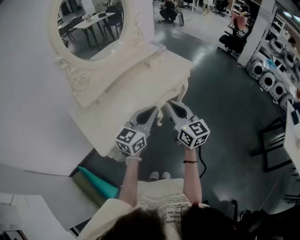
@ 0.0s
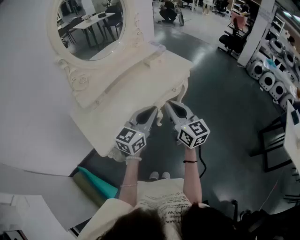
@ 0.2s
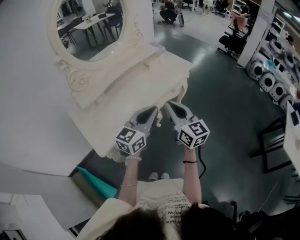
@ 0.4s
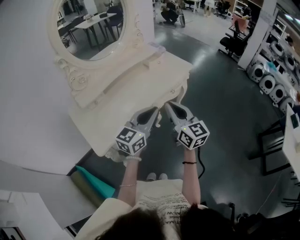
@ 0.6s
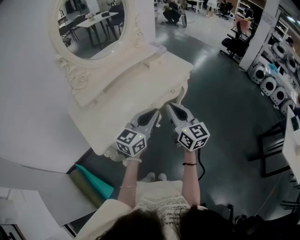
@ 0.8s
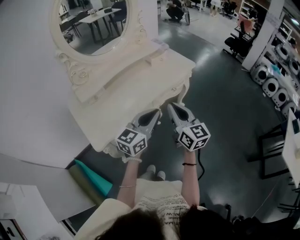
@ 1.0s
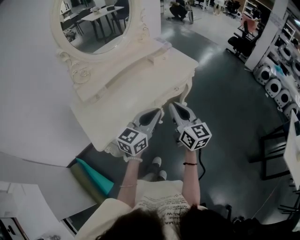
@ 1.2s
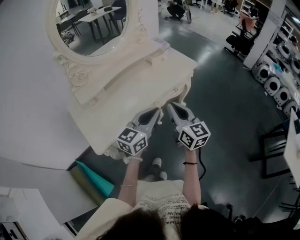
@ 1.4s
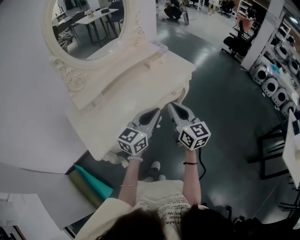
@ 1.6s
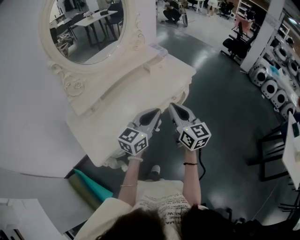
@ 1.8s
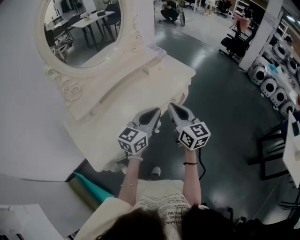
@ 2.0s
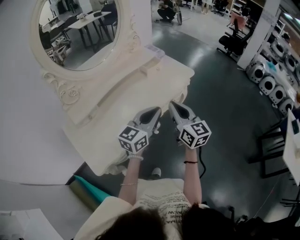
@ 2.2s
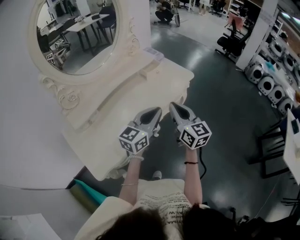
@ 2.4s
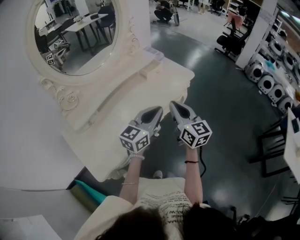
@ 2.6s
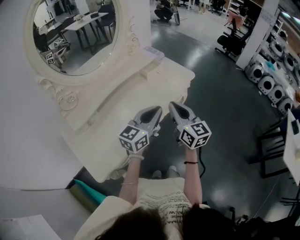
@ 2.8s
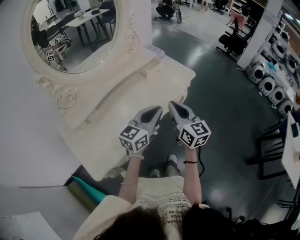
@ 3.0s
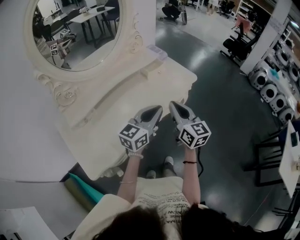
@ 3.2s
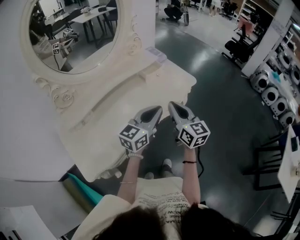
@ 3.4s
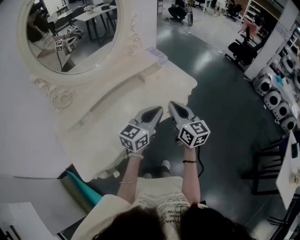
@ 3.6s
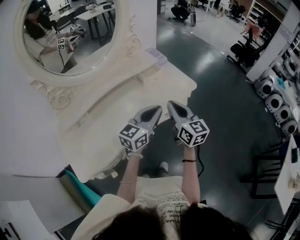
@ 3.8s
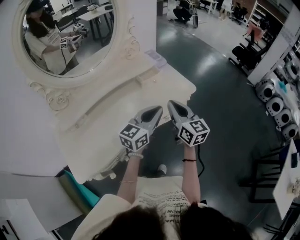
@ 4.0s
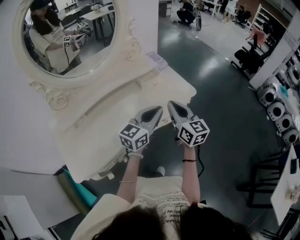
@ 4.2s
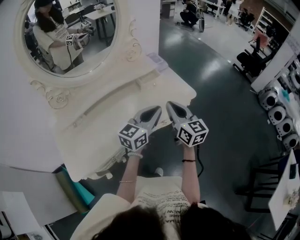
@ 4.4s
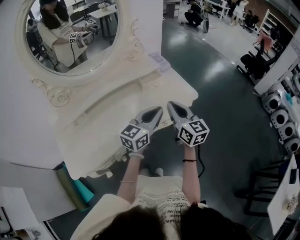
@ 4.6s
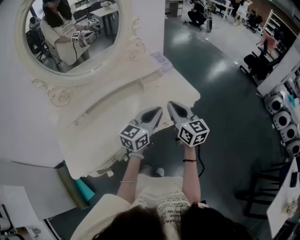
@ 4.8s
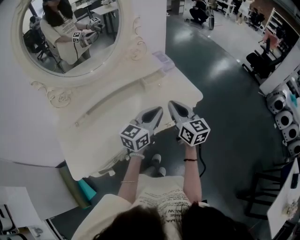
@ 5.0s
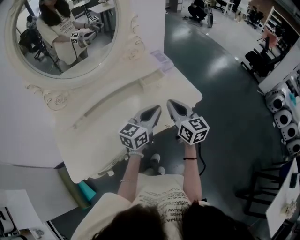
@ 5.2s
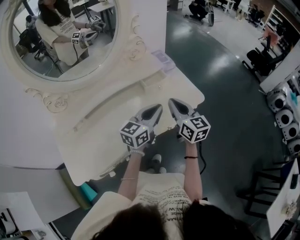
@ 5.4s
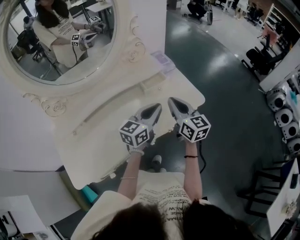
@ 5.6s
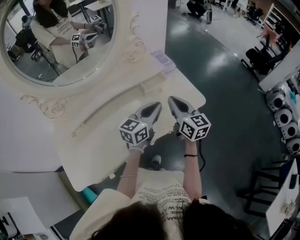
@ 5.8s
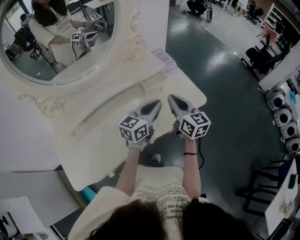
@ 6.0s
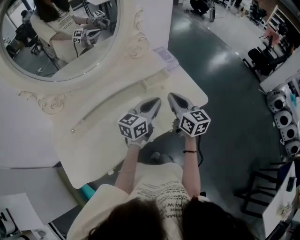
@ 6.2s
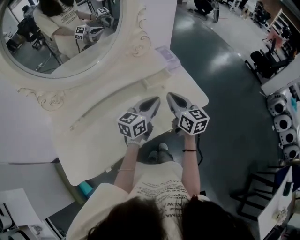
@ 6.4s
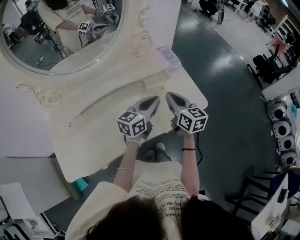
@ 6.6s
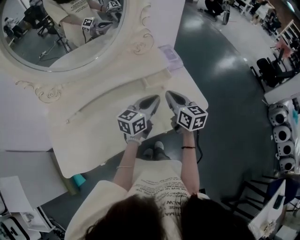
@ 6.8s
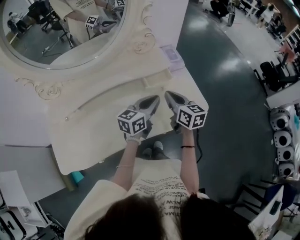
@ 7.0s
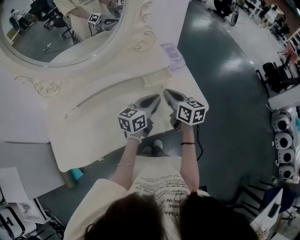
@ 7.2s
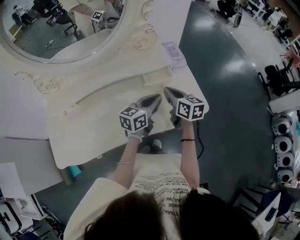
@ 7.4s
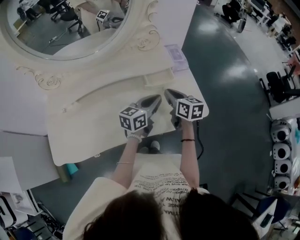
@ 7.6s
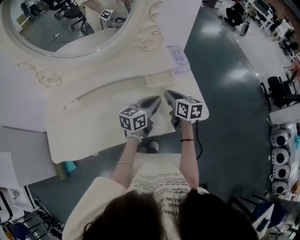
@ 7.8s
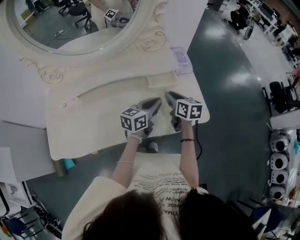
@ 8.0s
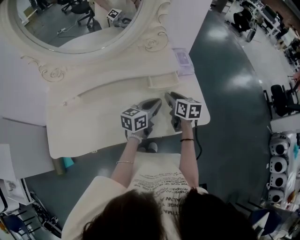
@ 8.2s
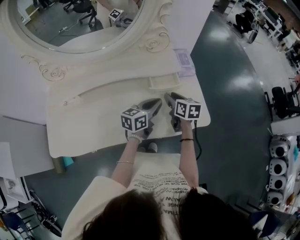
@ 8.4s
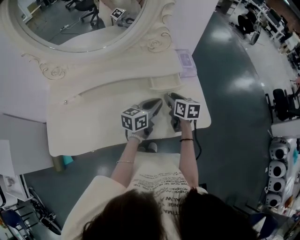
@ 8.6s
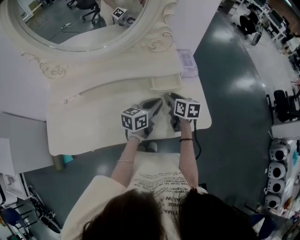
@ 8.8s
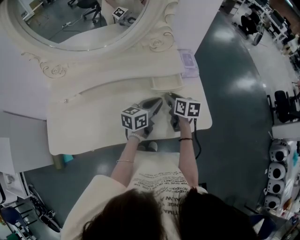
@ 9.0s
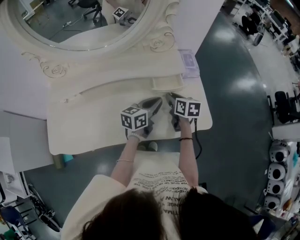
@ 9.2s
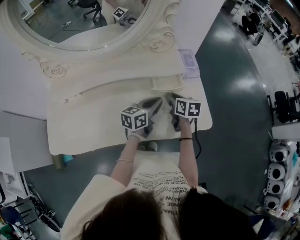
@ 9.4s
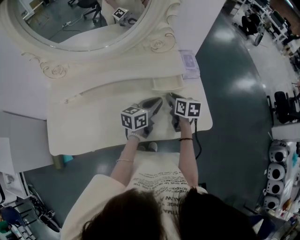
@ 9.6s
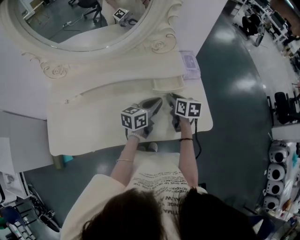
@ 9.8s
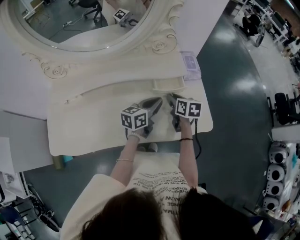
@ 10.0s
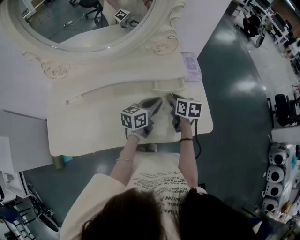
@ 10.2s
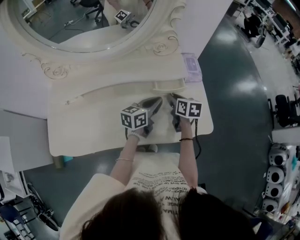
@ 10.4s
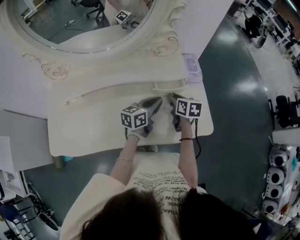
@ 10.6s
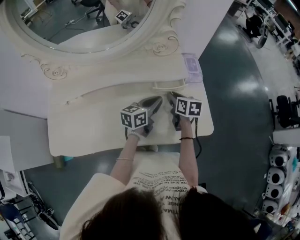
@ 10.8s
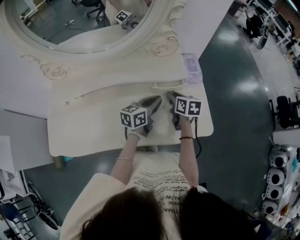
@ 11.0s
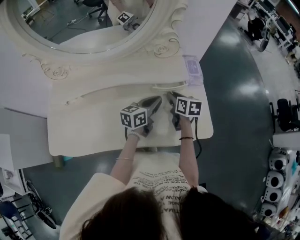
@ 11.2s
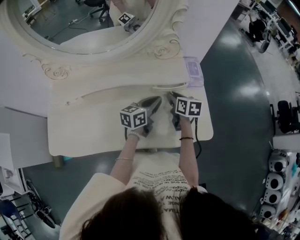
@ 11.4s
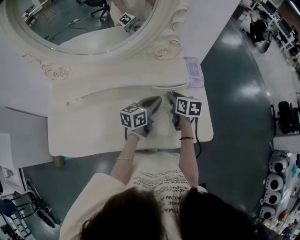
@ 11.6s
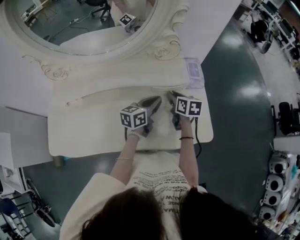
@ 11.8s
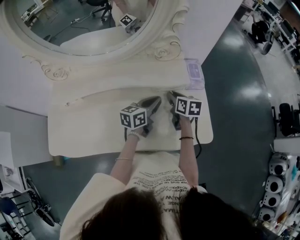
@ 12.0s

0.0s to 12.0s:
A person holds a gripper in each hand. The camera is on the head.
0.0s to 1.6s: The two grippers go approximately 5 cm forward.
1.6s to 3.0s: Both grippers travel together forward, approximately 10 cm.
3.0s to 4.4s: Both grippers travel together forward and to the right, approximately 15 cm.
4.4s to 6.0s: The right gripper moves forward, some 15 cm; the left gripper moves forward and downward, some 15 cm.
6.0s to 7.6s: The two grippers go approximately 10 cm downward and forward. The right gripper changes its angle by some 30 degrees.
7.6s to 9.0s: The left gripper ends up about 5 cm from where it was. Meanwhile the right gripper travels downward by approximately 5 cm, and opens.
9.0s to 10.4s: There are only small adjustments of the grippers.
10.4s to 12.0s: The right gripper is displaced forward by some 5 cm.

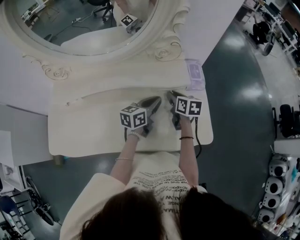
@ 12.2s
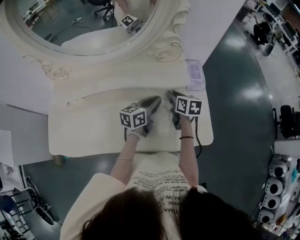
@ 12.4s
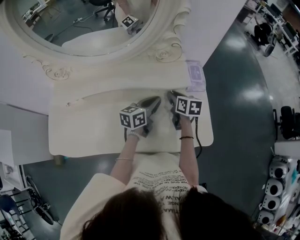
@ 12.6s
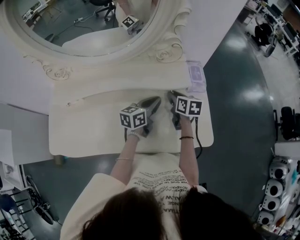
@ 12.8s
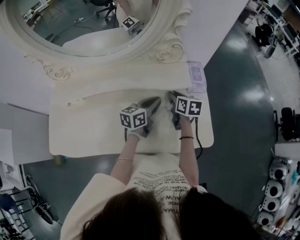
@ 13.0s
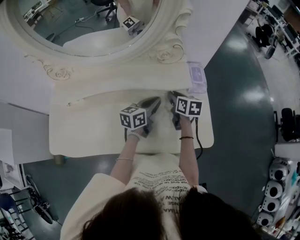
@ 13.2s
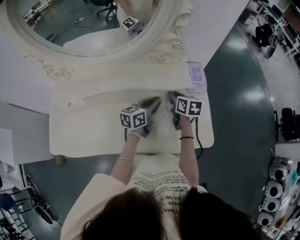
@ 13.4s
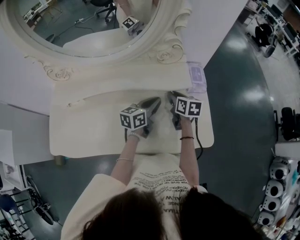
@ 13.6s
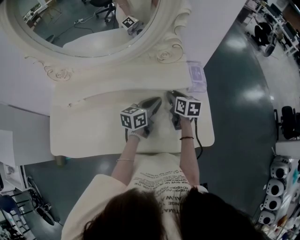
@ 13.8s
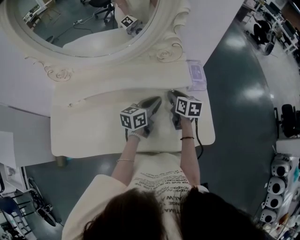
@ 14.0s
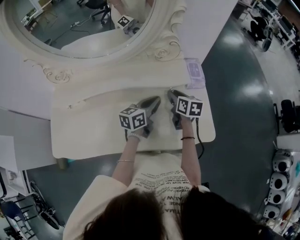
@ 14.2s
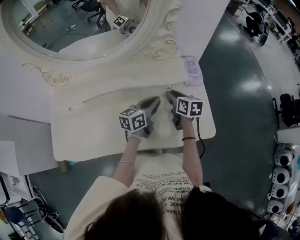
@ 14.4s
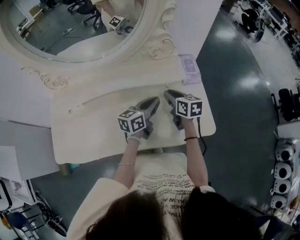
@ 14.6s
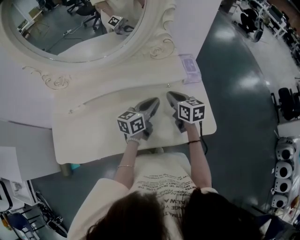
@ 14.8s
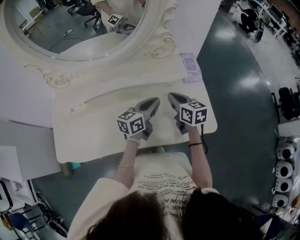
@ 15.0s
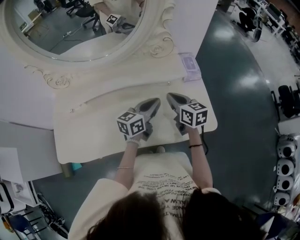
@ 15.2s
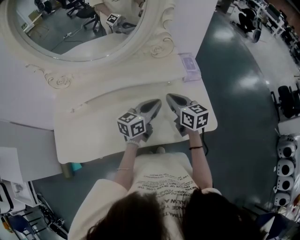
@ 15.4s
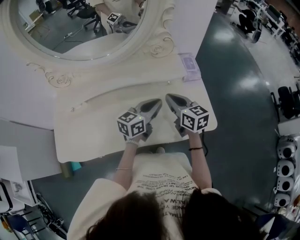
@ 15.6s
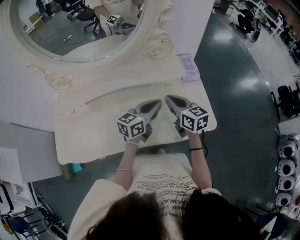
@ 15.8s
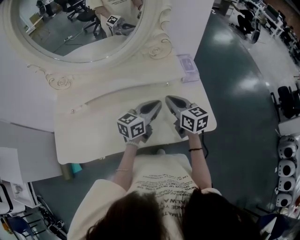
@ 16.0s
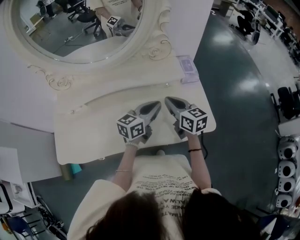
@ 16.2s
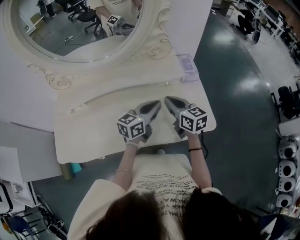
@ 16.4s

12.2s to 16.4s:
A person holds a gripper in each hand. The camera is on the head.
12.2s to 13.6s: Both grippers stay put.
13.6s to 15.0s: The left gripper goes some 5 cm backward. Meanwhile the right gripper shifts some 10 cm backward and upward, and closes its fingers.
15.0s to 16.4s: The right gripper moves approximately 5 cm.

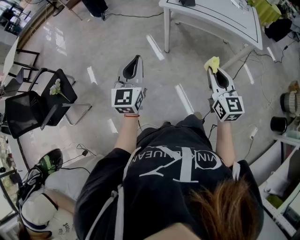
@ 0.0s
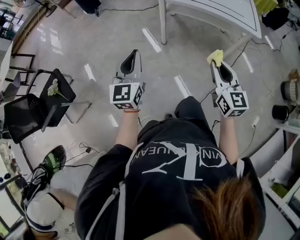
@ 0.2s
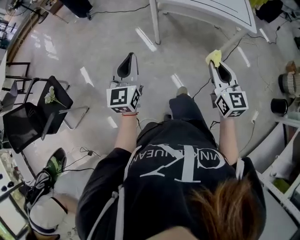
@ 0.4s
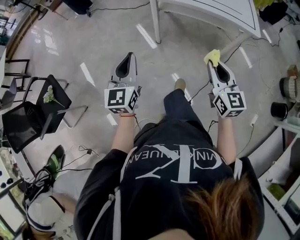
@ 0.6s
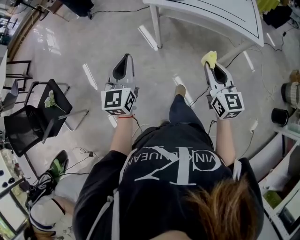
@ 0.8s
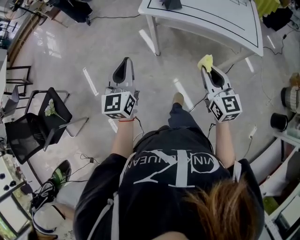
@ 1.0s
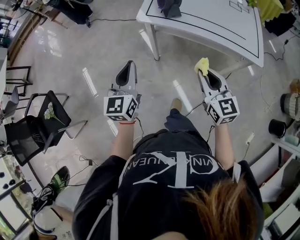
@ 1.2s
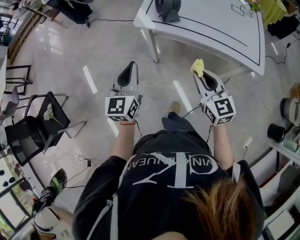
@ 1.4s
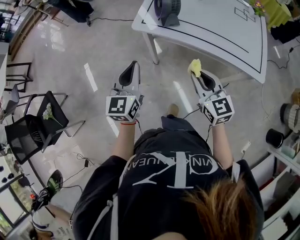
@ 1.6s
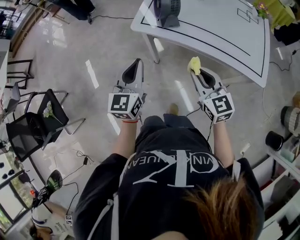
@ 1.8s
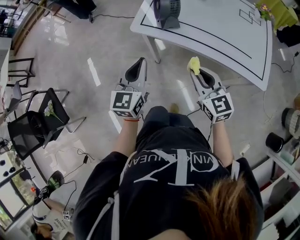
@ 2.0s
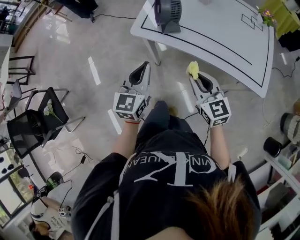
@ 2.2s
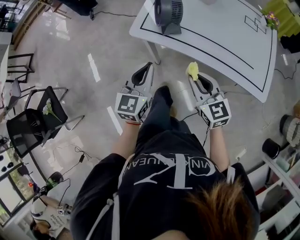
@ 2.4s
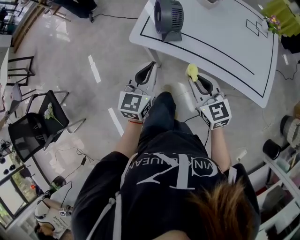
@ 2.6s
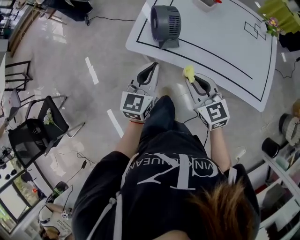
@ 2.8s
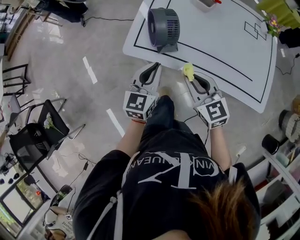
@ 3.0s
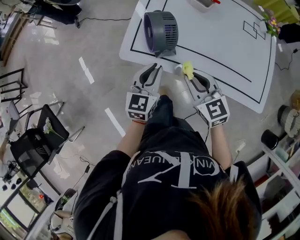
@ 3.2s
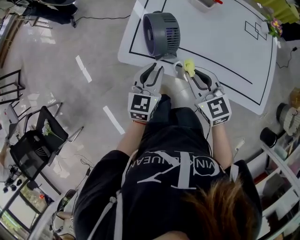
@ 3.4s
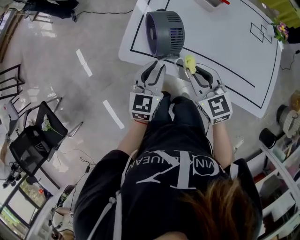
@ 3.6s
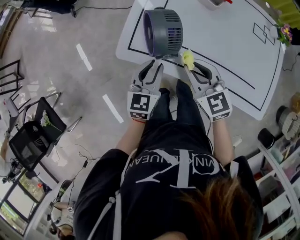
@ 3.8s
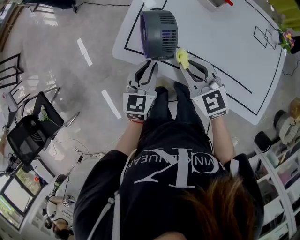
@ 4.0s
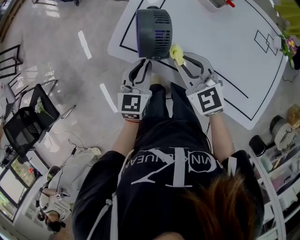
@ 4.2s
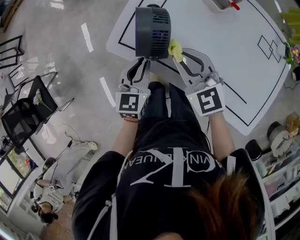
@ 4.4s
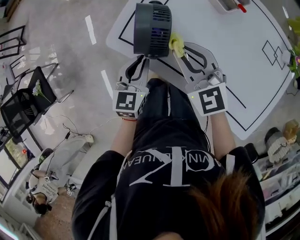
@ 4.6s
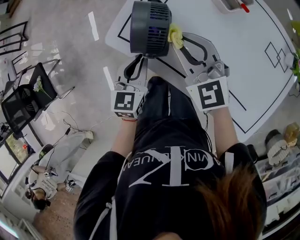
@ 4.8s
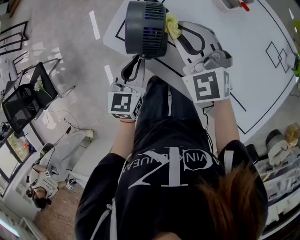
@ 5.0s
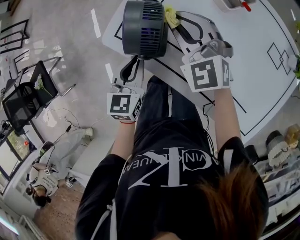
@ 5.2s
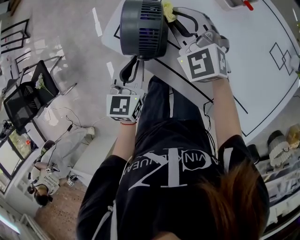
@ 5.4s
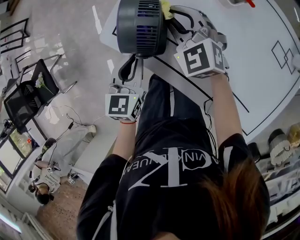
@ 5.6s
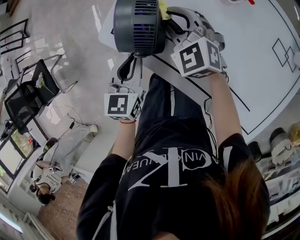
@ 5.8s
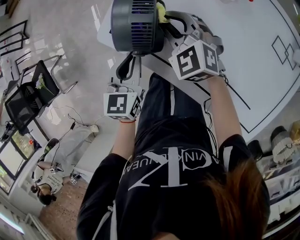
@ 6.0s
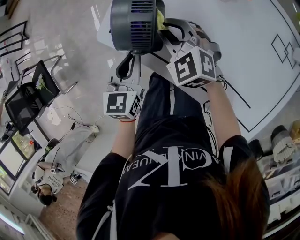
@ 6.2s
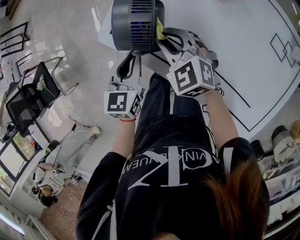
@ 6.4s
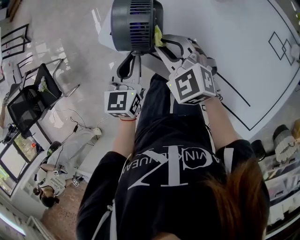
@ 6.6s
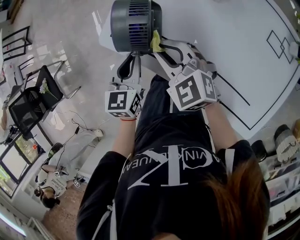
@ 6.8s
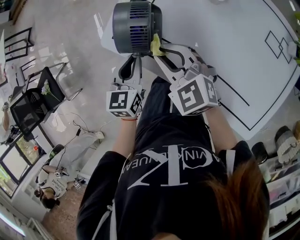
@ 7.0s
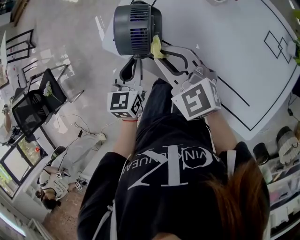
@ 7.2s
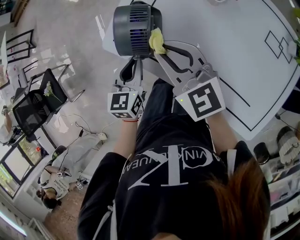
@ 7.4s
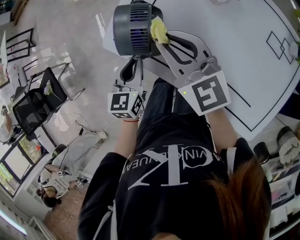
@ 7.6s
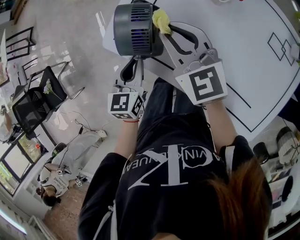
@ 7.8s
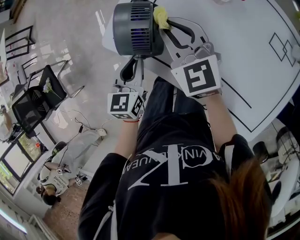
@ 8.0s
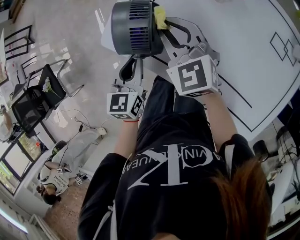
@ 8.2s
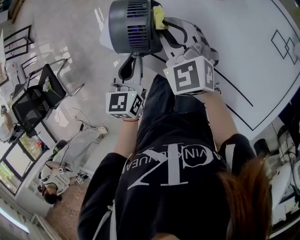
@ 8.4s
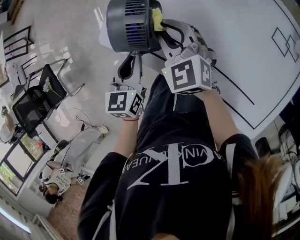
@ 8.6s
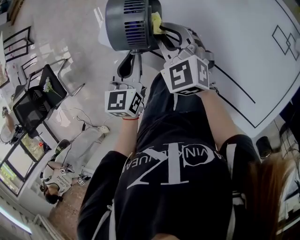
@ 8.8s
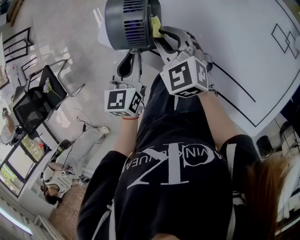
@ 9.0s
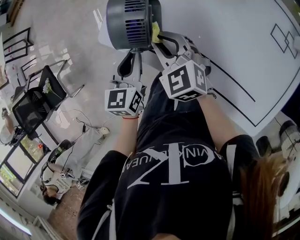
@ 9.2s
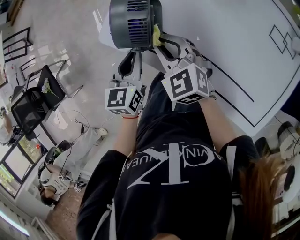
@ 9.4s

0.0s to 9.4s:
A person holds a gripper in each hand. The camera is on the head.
0.0s to 1.6s: The right gripper goes approximately 30 cm forward, while the left gripper is displaced forward and to the right by about 30 cm.
1.6s to 3.2s: The right gripper travels forward by approximately 20 cm. Meanwhile the left gripper moves forward, to the right and downward, some 20 cm.
3.2s to 4.8s: The right gripper moves forward, some 15 cm, and turns by roughly 30 degrees, while the left gripper turns by approximately 20 degrees.
4.8s to 6.2s: The right gripper goes approximately 5 cm downward.
6.2s to 7.8s: The right gripper is displaced upward by approximately 10 cm, and swivels about 30 degrees.
7.8s to 9.4s: The right gripper goes some 10 cm downward.
